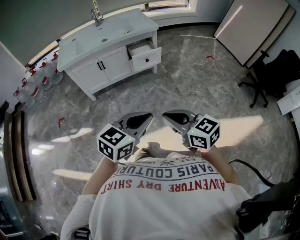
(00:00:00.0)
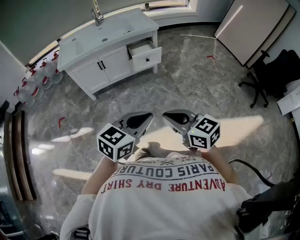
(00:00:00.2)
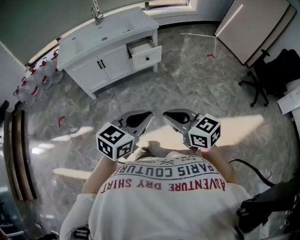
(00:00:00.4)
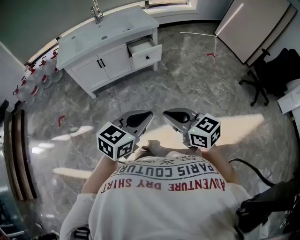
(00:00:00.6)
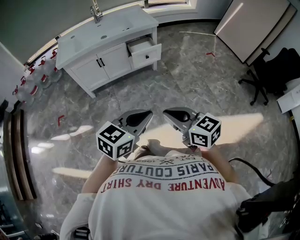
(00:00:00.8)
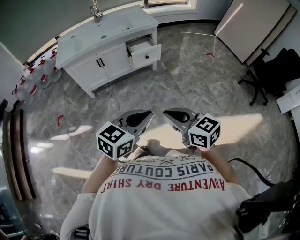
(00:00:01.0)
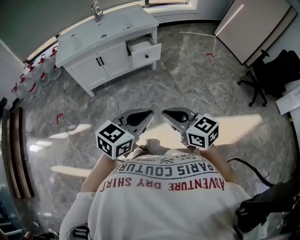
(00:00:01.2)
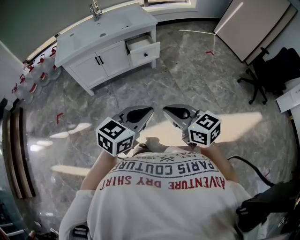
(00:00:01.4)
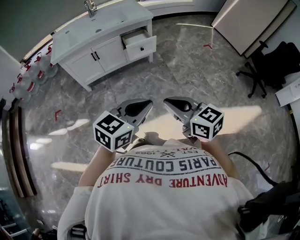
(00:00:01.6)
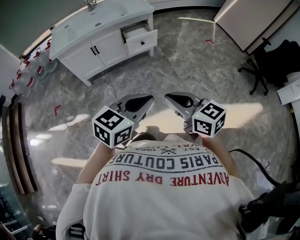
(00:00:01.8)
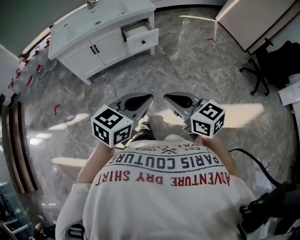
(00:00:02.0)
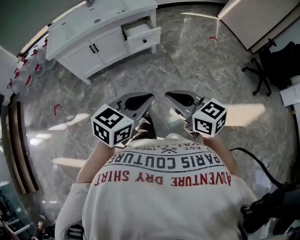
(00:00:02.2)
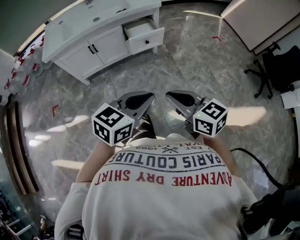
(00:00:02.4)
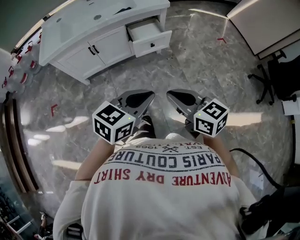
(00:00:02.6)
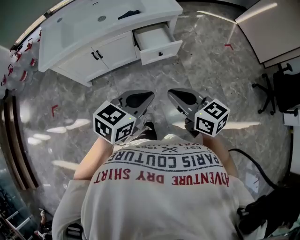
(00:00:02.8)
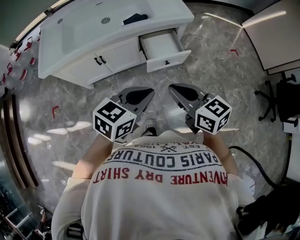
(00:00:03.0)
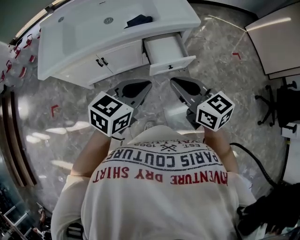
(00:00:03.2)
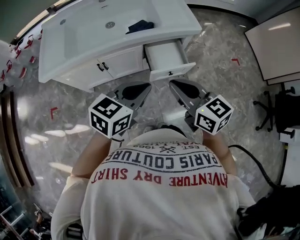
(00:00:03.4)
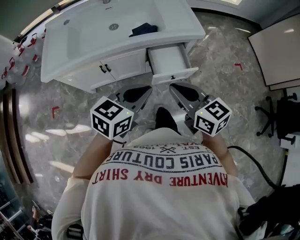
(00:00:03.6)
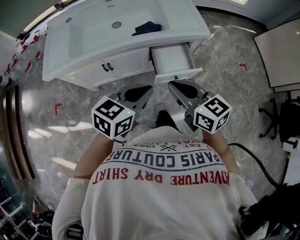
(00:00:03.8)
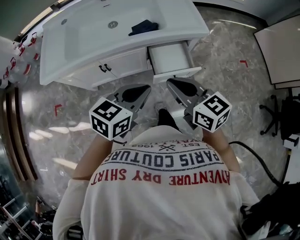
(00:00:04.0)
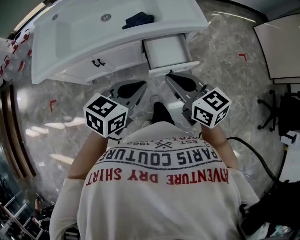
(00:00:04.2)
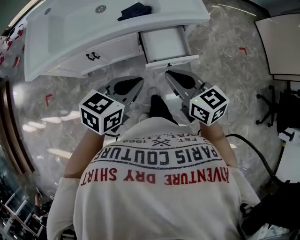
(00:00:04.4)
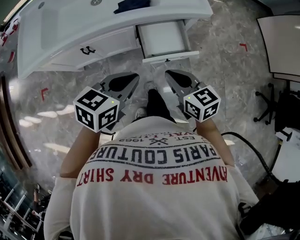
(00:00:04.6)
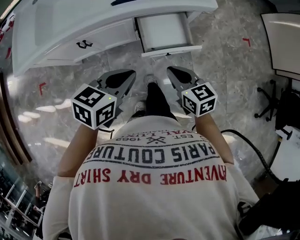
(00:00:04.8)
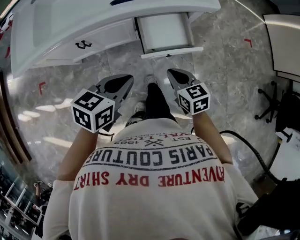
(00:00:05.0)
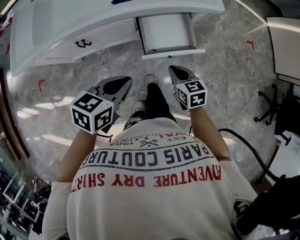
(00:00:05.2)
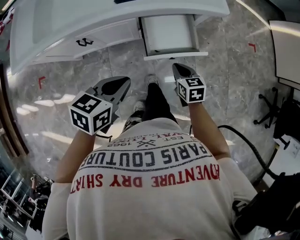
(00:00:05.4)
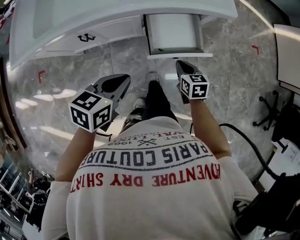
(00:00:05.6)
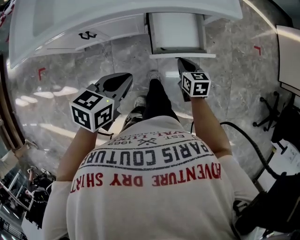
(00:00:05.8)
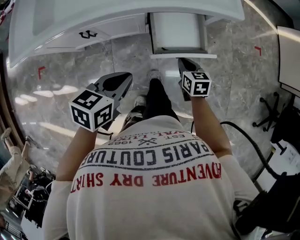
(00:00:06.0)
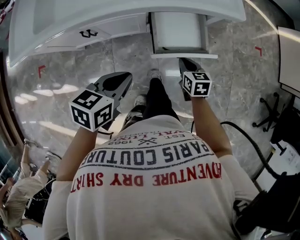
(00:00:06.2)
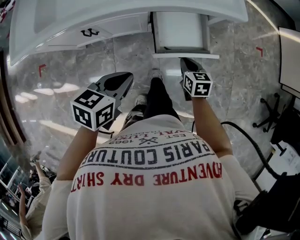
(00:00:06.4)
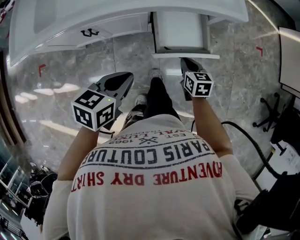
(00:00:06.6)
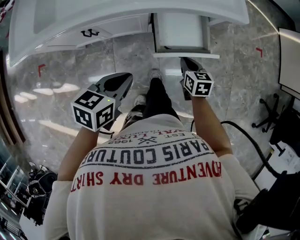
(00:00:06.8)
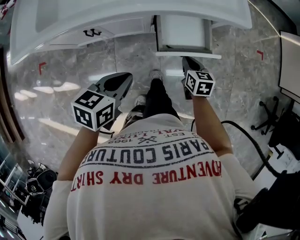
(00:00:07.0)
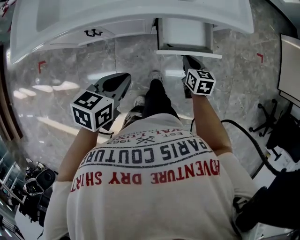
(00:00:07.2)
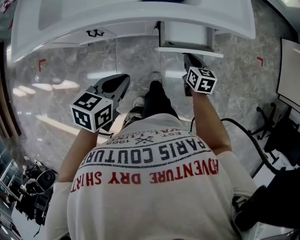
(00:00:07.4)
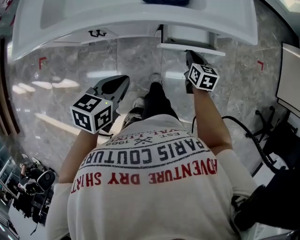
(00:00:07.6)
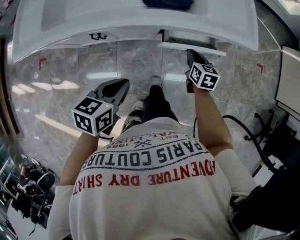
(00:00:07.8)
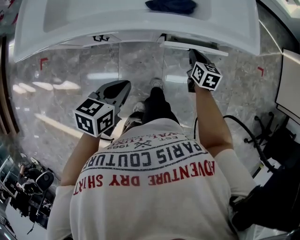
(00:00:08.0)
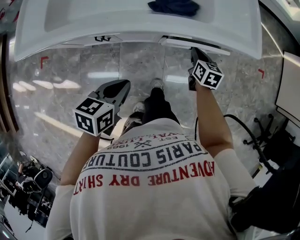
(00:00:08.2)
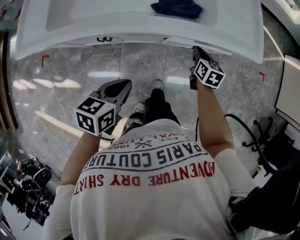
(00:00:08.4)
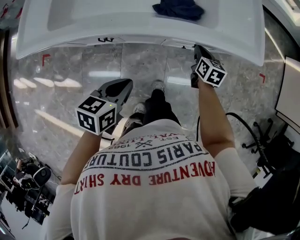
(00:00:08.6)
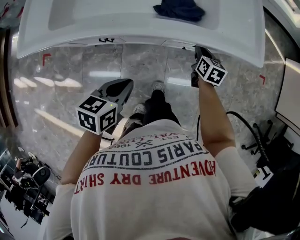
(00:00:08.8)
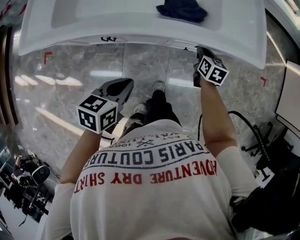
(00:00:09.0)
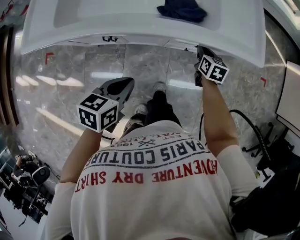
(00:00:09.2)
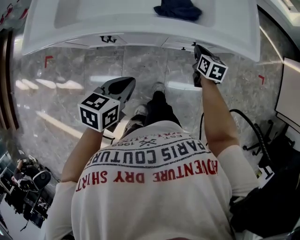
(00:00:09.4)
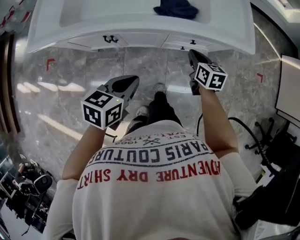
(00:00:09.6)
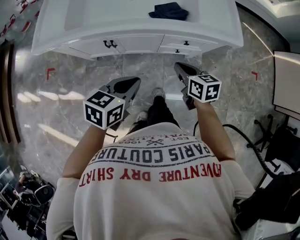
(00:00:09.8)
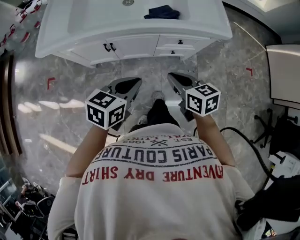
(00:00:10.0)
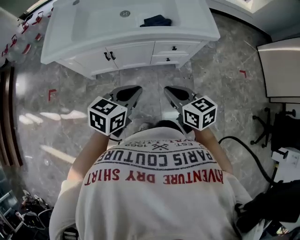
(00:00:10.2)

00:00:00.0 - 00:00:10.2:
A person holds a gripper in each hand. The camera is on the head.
00:00:00.0 - 00:00:01.4: Neither gripper changes place.
00:00:01.4 - 00:00:03.0: The pair of grippers is taken forward, some 60 cm.
00:00:03.0 - 00:00:04.4: Both grippers move forward, some 20 cm.
00:00:04.4 - 00:00:05.8: The right gripper goes roughly 30 cm downward, and turns by some 30 degrees; the left gripper goes some 15 cm downward.
00:00:05.8 - 00:00:07.2: The grippers make only small movements.
00:00:07.2 - 00:00:08.8: The right gripper is displaced forward by roughly 15 cm; the left gripper travels to the left by roughly 5 cm.
00:00:08.8 - 00:00:10.2: The right gripper is displaced backward and upward by roughly 50 cm, and swivels some 30 degrees, while the left gripper is displaced upward and backward by approximately 25 cm, and swivels roughly 20 degrees.

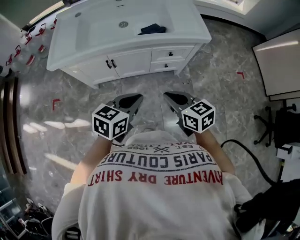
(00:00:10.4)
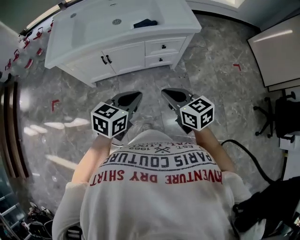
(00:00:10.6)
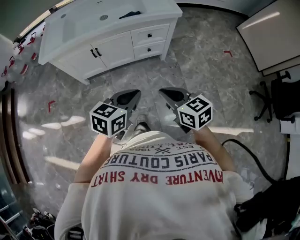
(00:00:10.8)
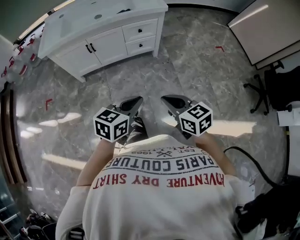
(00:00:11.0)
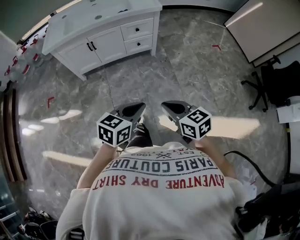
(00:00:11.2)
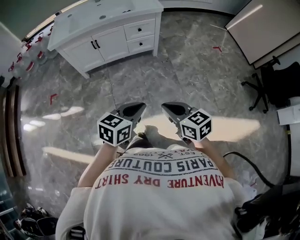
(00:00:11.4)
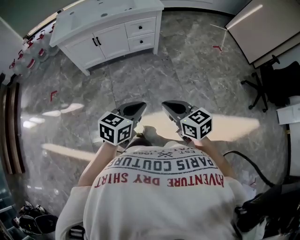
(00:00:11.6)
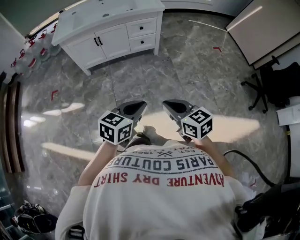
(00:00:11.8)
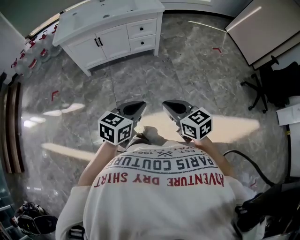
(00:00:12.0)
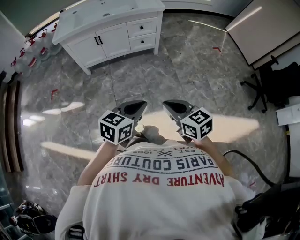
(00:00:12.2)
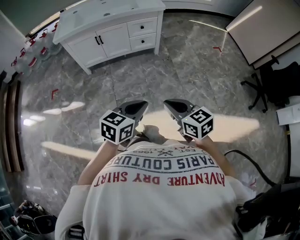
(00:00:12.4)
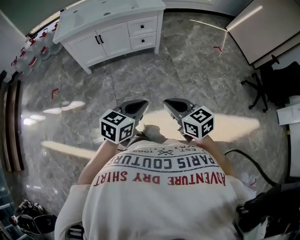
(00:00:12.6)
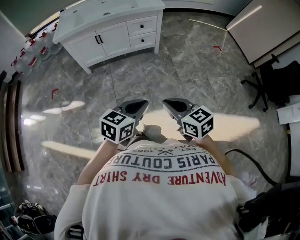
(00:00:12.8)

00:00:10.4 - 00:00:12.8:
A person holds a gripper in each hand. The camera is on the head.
00:00:10.4 - 00:00:11.6: The two grippers travel together, backward, some 60 cm.
00:00:11.6 - 00:00:12.8: The grippers make only small movements.

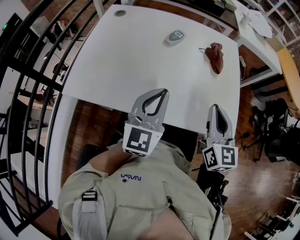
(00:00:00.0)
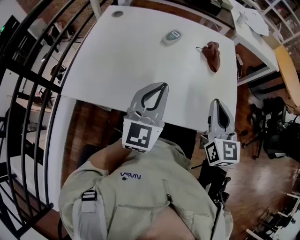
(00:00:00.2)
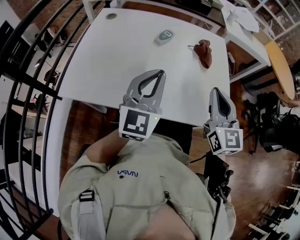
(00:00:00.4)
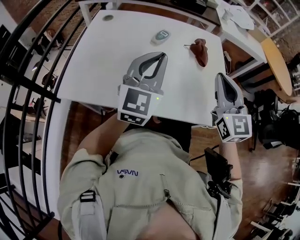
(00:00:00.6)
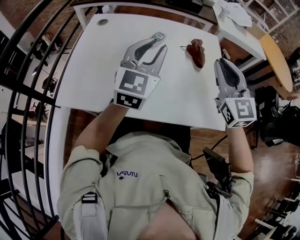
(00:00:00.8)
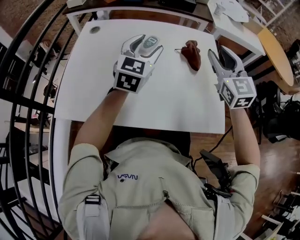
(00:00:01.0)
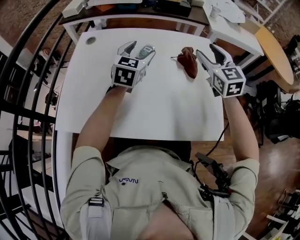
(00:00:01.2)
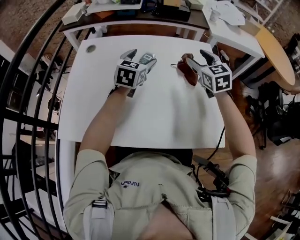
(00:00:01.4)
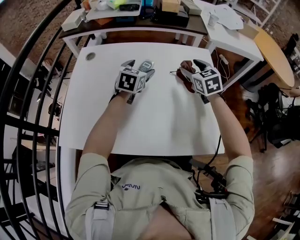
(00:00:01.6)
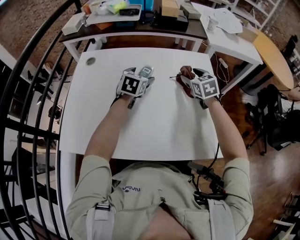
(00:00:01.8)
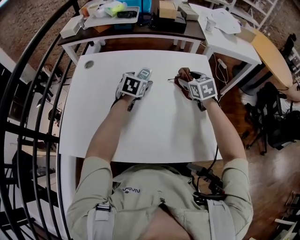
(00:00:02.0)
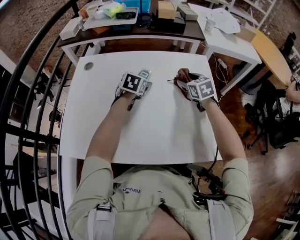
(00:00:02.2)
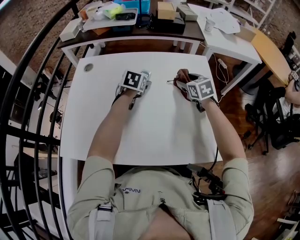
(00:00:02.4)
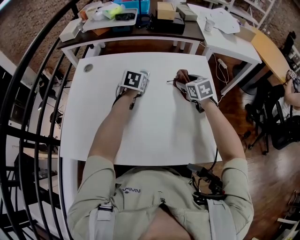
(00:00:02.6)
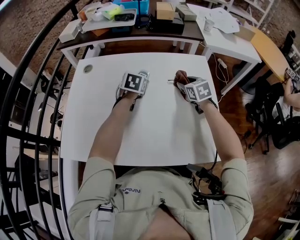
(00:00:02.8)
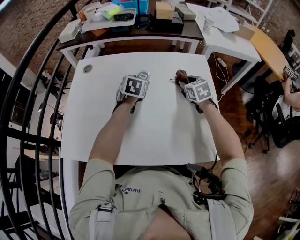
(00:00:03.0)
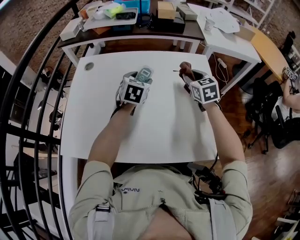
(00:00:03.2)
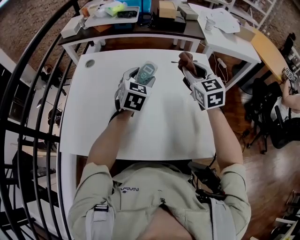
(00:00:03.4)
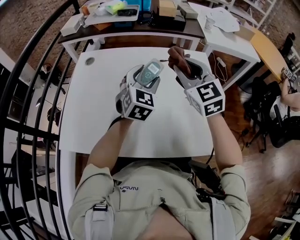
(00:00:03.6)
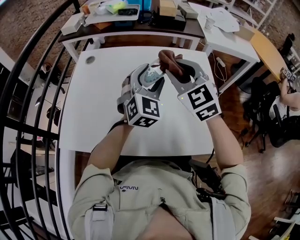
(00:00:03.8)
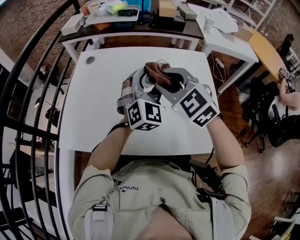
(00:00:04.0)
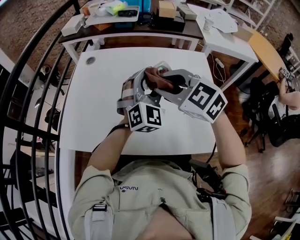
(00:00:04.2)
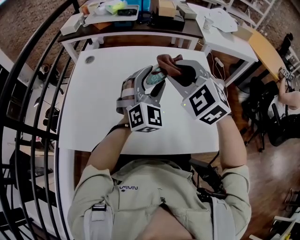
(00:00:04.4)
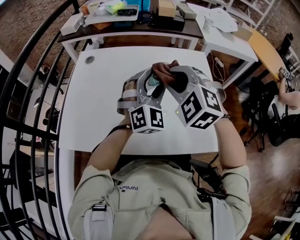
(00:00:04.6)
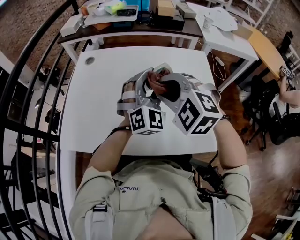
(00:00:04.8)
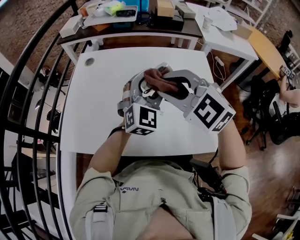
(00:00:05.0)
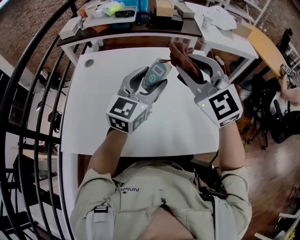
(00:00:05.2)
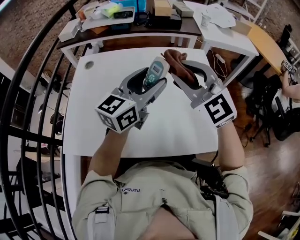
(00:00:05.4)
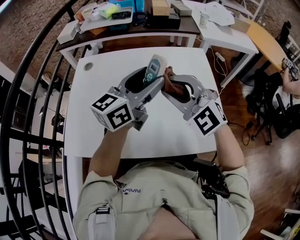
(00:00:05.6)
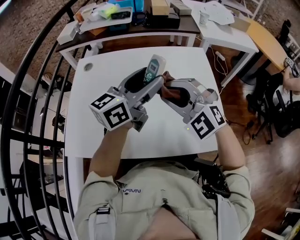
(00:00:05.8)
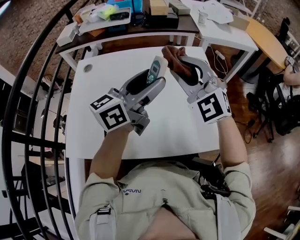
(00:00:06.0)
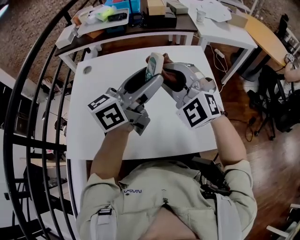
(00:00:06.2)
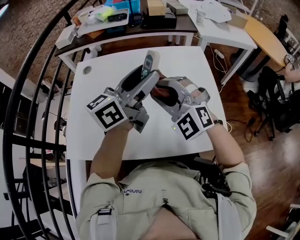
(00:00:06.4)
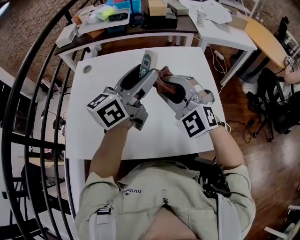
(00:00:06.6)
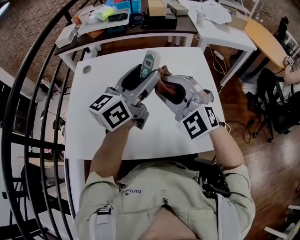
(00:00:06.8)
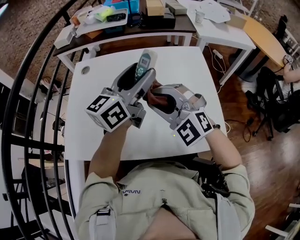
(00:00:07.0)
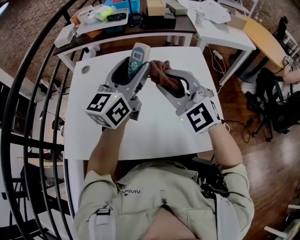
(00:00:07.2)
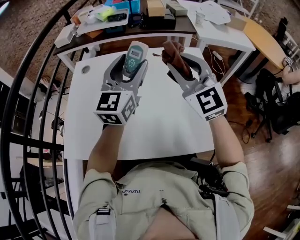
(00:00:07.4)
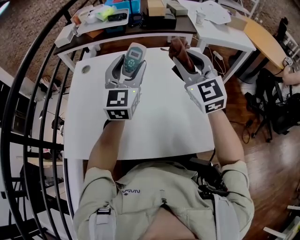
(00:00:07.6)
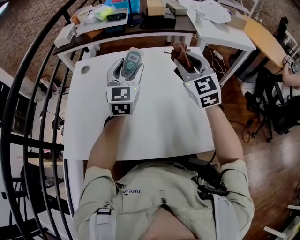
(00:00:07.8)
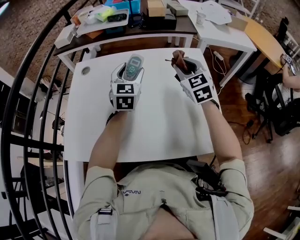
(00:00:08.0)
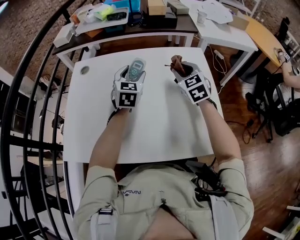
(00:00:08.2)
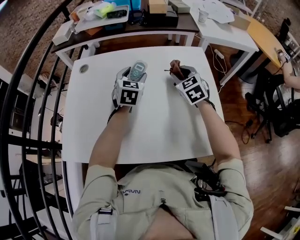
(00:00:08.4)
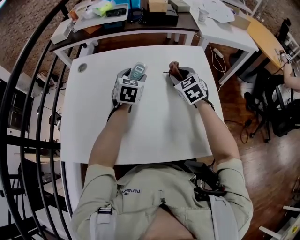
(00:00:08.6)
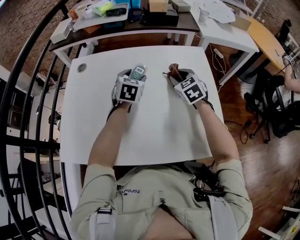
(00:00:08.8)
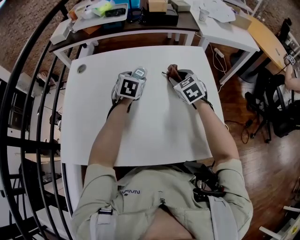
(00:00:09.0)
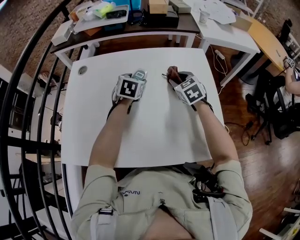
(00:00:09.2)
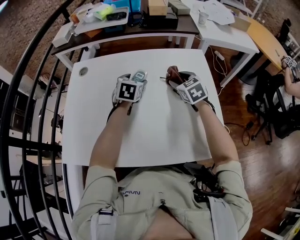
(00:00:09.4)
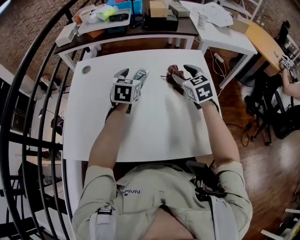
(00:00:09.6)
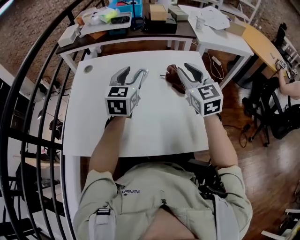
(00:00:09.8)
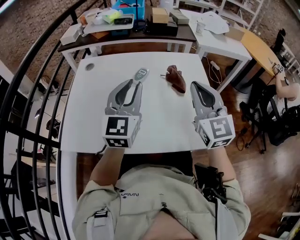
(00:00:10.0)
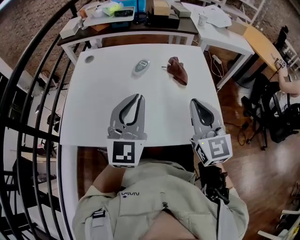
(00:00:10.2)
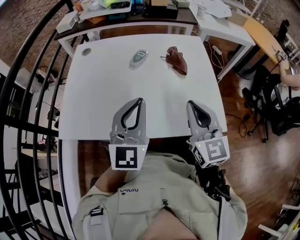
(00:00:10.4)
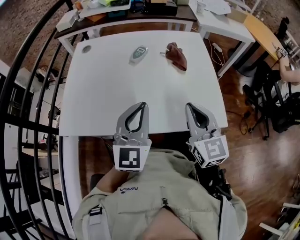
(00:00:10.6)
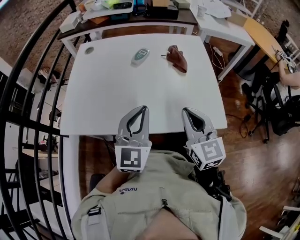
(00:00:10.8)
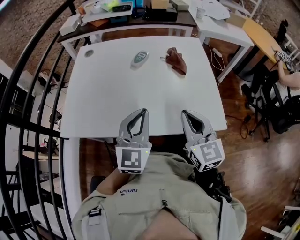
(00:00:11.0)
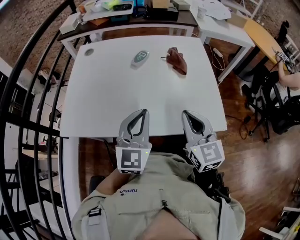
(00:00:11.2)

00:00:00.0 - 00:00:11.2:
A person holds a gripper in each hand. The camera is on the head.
00:00:00.0 - 00:00:01.6: Both grippers travel together forward, some 30 cm. The right gripper rotates approximately 30 degrees, and opens up. Meanwhile the left gripper swivels roughly 30 degrees, and opens.
00:00:01.6 - 00:00:03.2: The right gripper closes up.
00:00:03.2 - 00:00:04.8: The left gripper shifts about 15 cm backward and upward, and rotates around the line of its fingers by about 40 degrees, clockwise from behind; the right gripper moves left and right over about 20 cm, changing direction 2 times, and rolls counterclockwise, seen from behind, by some 50 degrees.
00:00:04.8 - 00:00:06.4: The right gripper moves up and down over approximately 10 cm, changing direction 3 times, and turns by some 20 degrees. The left gripper heads upward, covering roughly 10 cm, and rotates around the line of its fingers by roughly 80 degrees, counterclockwise from behind.
00:00:06.4 - 00:00:08.0: The right gripper is displaced forward and to the right by some 20 cm, and swivels some 50 degrees. The left gripper is displaced forward and downward by some 20 cm, and swivels some 60 degrees.
00:00:08.0 - 00:00:09.6: The right gripper shifts some 5 cm downward, and opens.
00:00:09.6 - 00:00:11.2: The two grippers go about 30 cm backward. The left gripper swivels some 20 degrees, and closes its fingers. The right gripper closes up.
